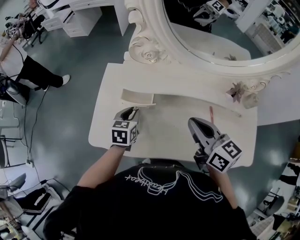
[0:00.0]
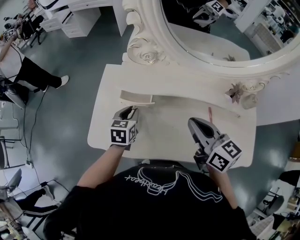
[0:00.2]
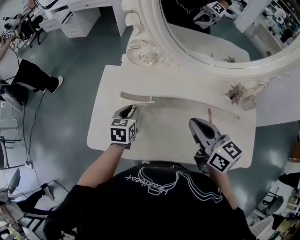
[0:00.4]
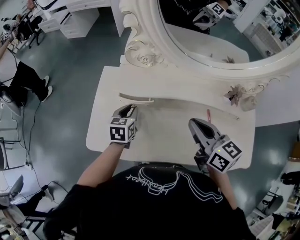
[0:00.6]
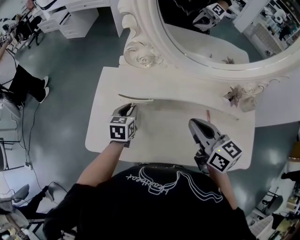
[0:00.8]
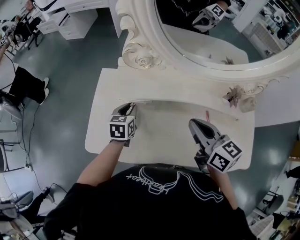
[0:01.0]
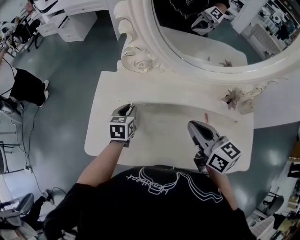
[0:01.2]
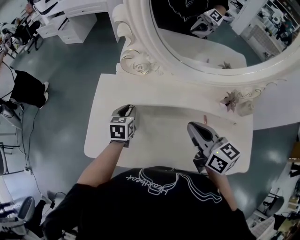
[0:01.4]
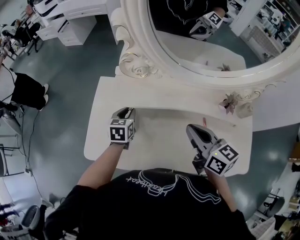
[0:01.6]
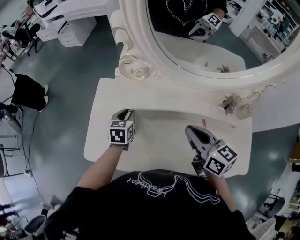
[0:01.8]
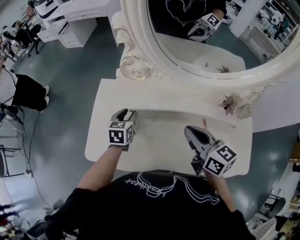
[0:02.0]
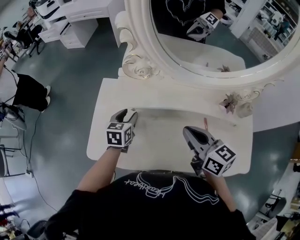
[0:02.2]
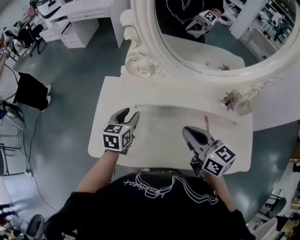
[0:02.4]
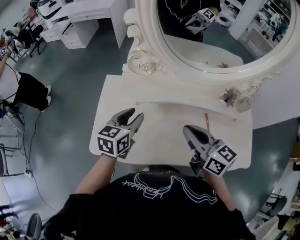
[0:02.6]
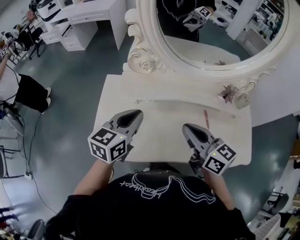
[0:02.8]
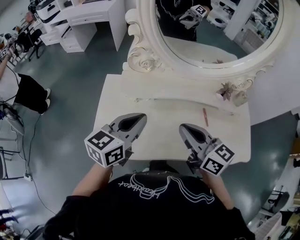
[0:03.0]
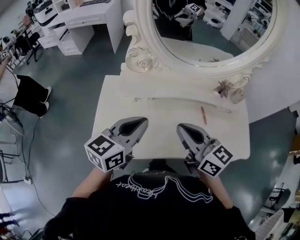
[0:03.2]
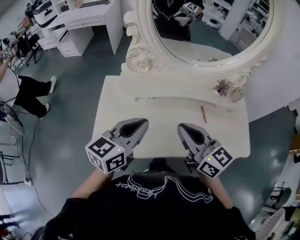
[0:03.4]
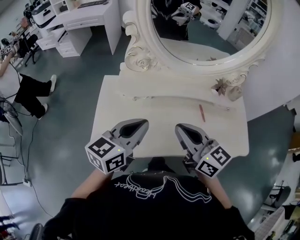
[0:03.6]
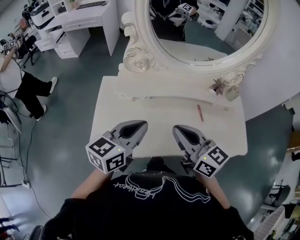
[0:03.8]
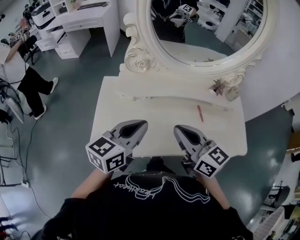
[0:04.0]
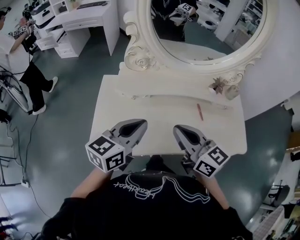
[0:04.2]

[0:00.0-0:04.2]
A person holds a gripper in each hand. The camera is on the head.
0.0 to 1.4 s: The left gripper goes some 5 cm forward.
1.4 to 2.8 s: The left gripper travels upward and backward by about 20 cm, swivels about 30 degrees, and opens, then closes once more. The right gripper shifts approximately 5 cm backward.
2.8 to 4.2 s: The two grippers go roughly 5 cm backward.

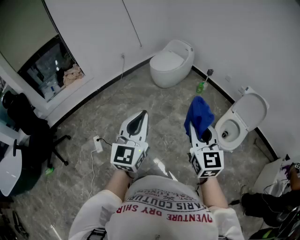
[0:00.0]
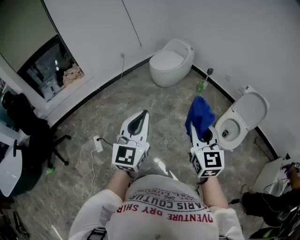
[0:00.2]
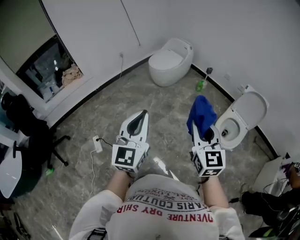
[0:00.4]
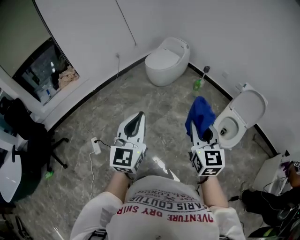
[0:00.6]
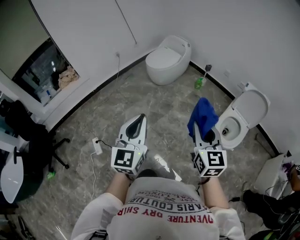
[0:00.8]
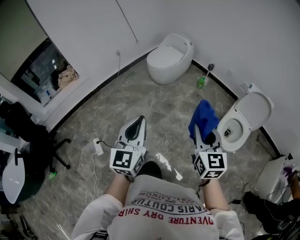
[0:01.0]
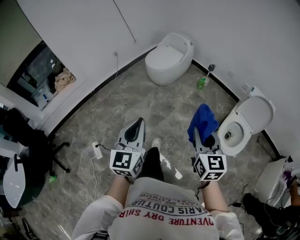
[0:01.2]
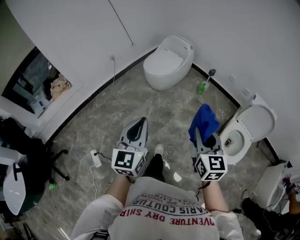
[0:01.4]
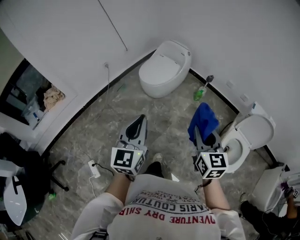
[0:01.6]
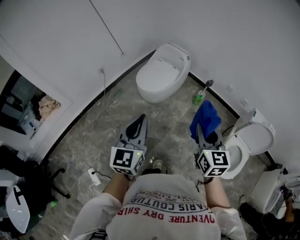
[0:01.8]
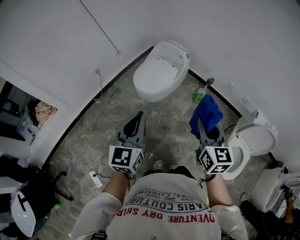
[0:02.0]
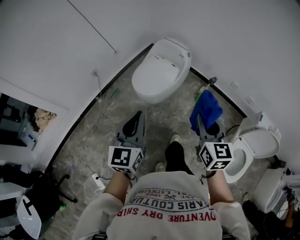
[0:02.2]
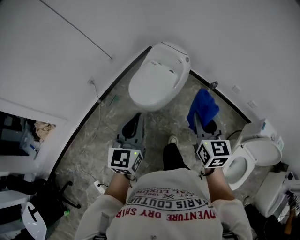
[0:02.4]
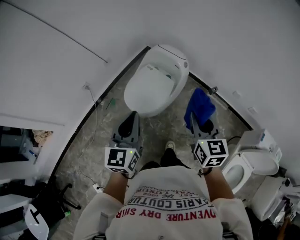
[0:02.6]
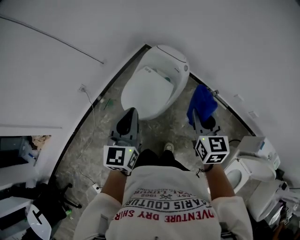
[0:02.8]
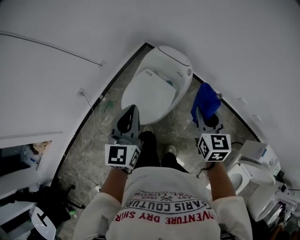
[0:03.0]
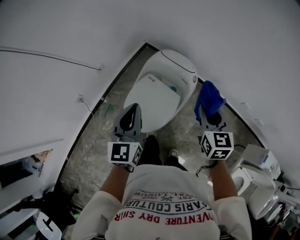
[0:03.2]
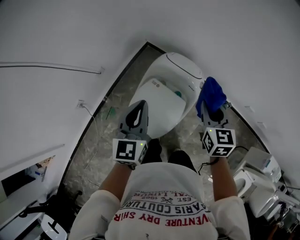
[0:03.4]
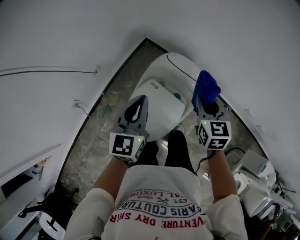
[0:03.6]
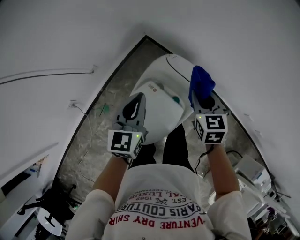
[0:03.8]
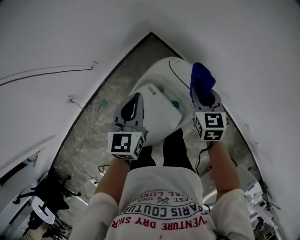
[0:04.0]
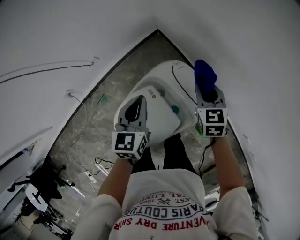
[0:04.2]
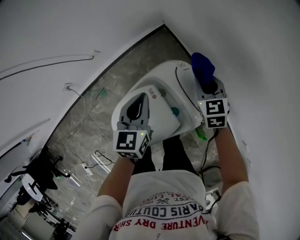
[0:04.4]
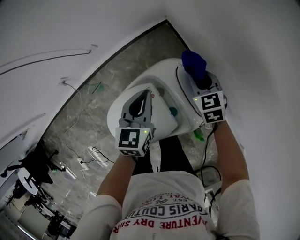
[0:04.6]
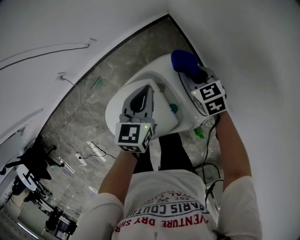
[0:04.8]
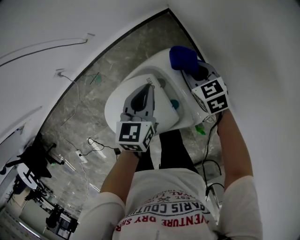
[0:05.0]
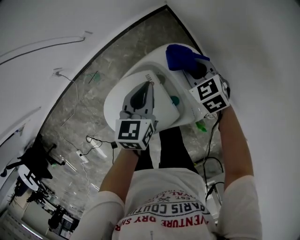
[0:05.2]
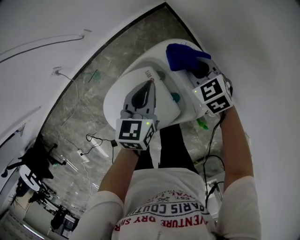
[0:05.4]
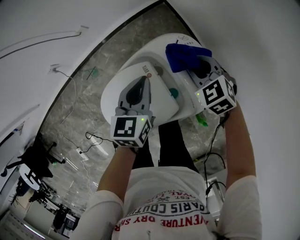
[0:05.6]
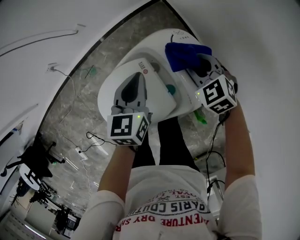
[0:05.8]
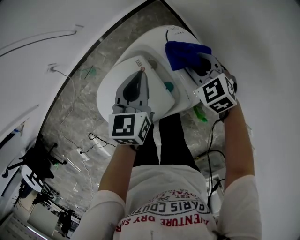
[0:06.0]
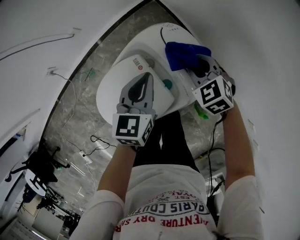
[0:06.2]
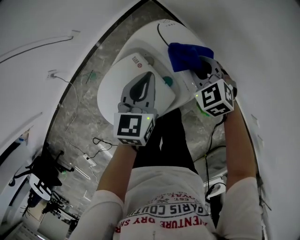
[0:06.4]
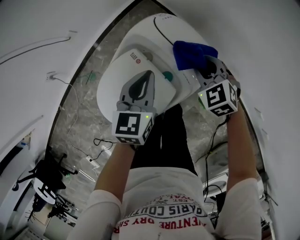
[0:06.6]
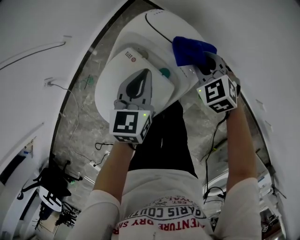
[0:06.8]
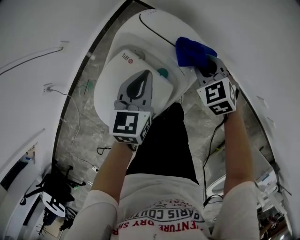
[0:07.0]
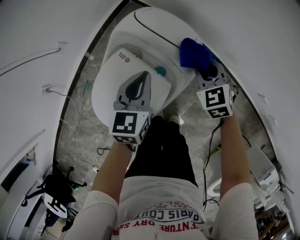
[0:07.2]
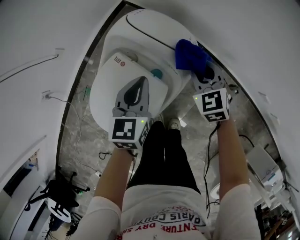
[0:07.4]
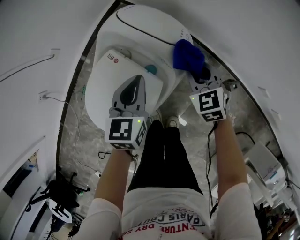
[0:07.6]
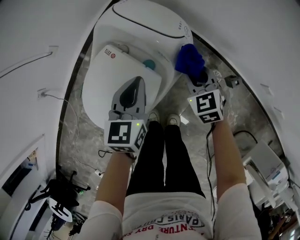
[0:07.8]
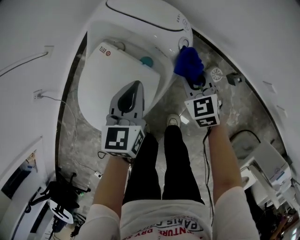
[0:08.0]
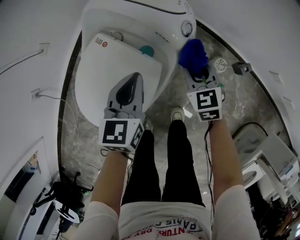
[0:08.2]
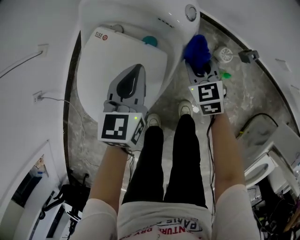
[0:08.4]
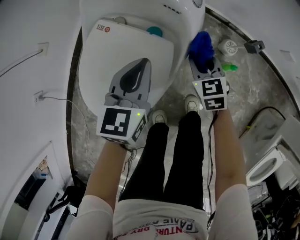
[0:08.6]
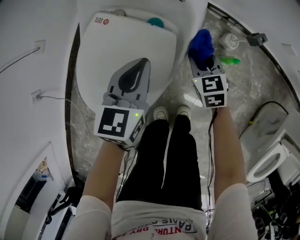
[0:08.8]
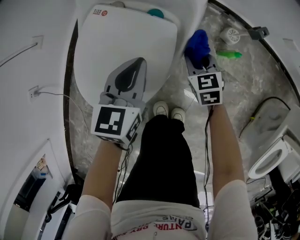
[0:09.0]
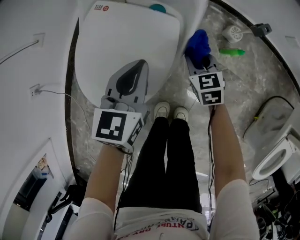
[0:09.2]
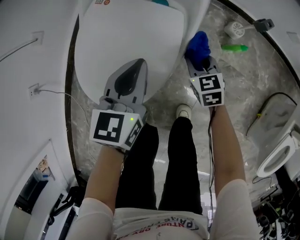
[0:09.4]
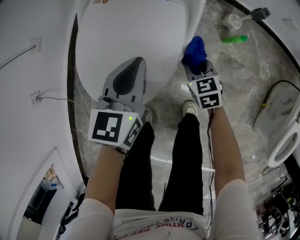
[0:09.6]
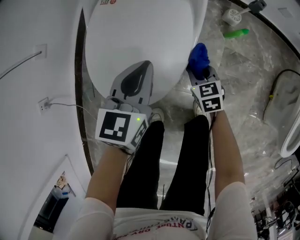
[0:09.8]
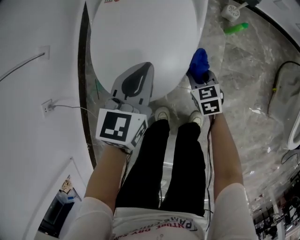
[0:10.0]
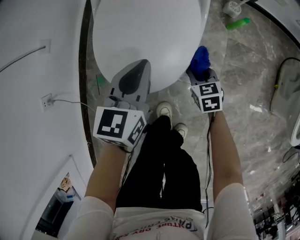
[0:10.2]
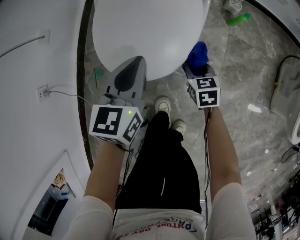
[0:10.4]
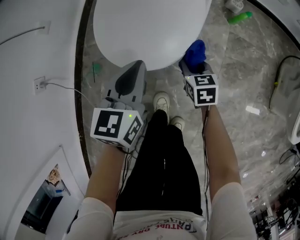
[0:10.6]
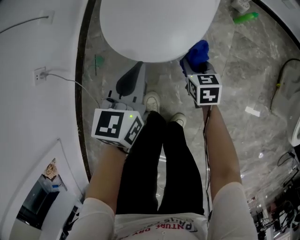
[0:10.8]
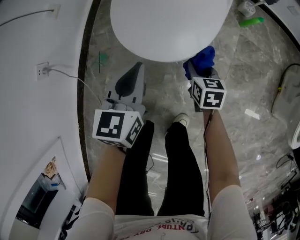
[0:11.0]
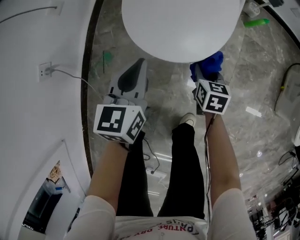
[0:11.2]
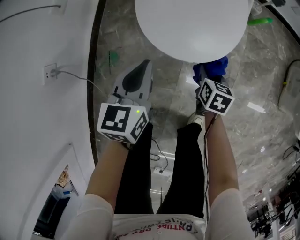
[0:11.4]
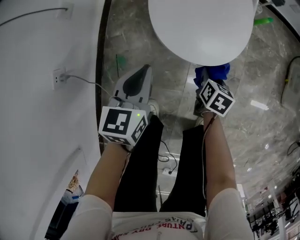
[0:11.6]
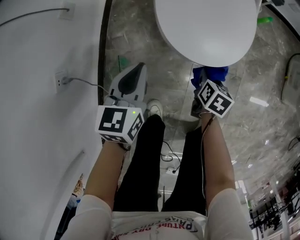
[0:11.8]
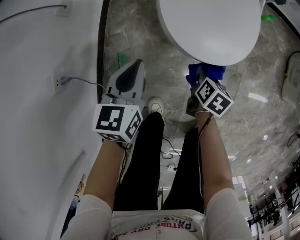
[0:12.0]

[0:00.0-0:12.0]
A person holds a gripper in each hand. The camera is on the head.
0.0 to 1.6 s: The two grippers go approximately 35 cm forward.
1.6 to 3.0 s: The pair of grippers is taken forward, some 70 cm.
3.0 to 4.4 s: Both grippers are carried forward, some 50 cm. The two grippers go roughly 25 cm downward. The right gripper rotates about 40 degrees. Meanwhile the left gripper swivels approximately 30 degrees.
4.4 to 6.0 s: The grippers both shift downward and backward by roughly 10 cm. The right gripper changes its angle by some 30 degrees.
6.0 to 7.6 s: The left gripper changes place by about 15 cm, and changes its angle by approximately 20 degrees, while the right gripper shifts by roughly 20 cm, and turns by about 40 degrees.
7.6 to 9.0 s: The right gripper heads downward and backward, covering about 25 cm, and swivels some 20 degrees; the left gripper moves backward and downward, approximately 20 cm.
9.0 to 10.4 s: Both grippers travel together backward and to the left, roughly 25 cm. The right gripper changes its angle by roughly 20 degrees.
10.4 to 12.0 s: The left gripper travels to the left by roughly 30 cm. Meanwhile the right gripper heads to the left and backward, covering some 20 cm, and rotates around the line of its fingers by roughly 40 degrees, clockwise from behind.

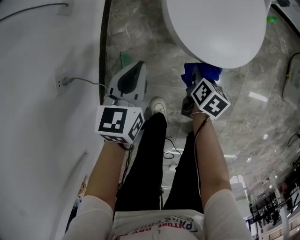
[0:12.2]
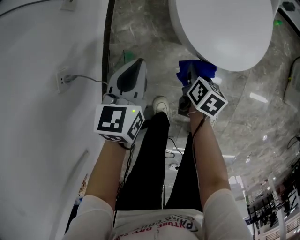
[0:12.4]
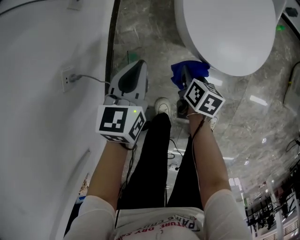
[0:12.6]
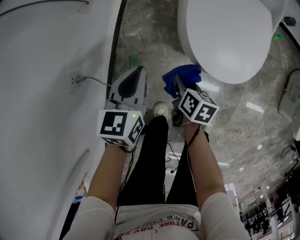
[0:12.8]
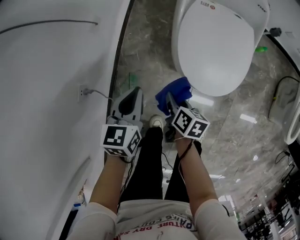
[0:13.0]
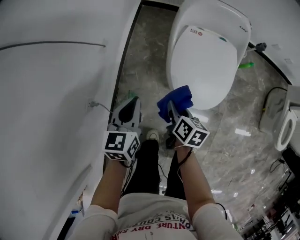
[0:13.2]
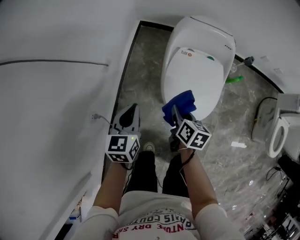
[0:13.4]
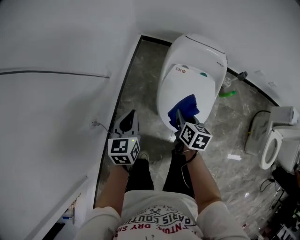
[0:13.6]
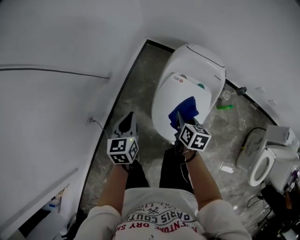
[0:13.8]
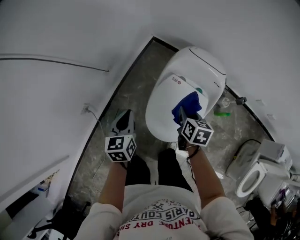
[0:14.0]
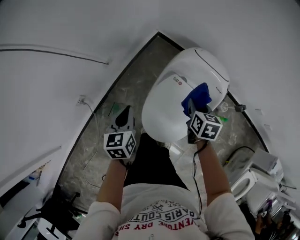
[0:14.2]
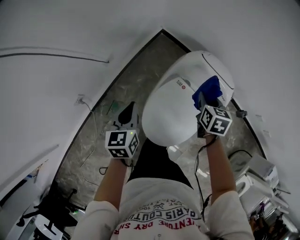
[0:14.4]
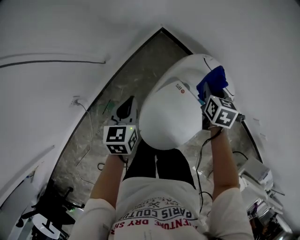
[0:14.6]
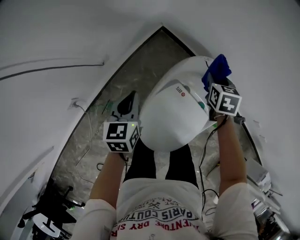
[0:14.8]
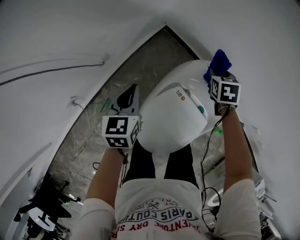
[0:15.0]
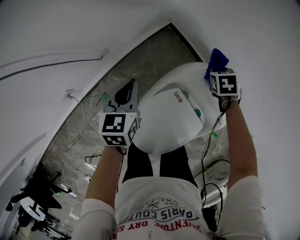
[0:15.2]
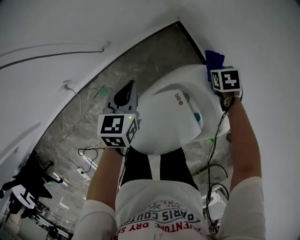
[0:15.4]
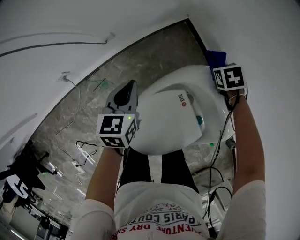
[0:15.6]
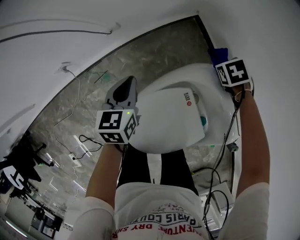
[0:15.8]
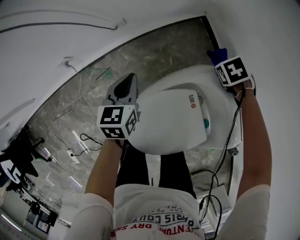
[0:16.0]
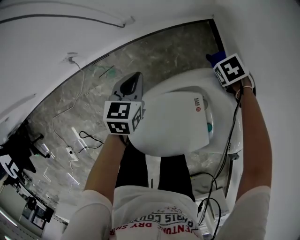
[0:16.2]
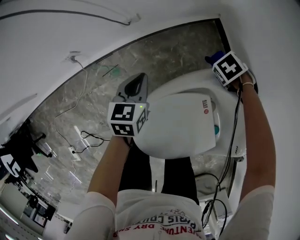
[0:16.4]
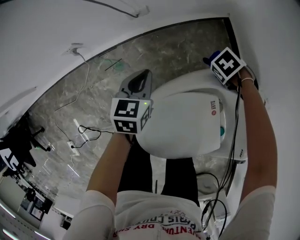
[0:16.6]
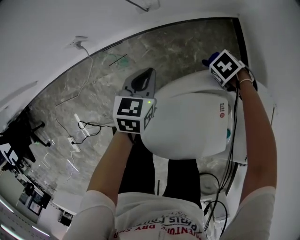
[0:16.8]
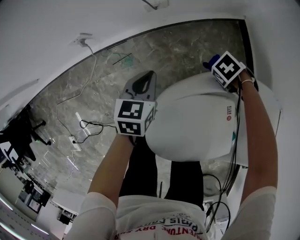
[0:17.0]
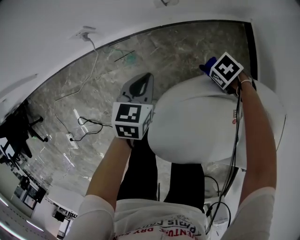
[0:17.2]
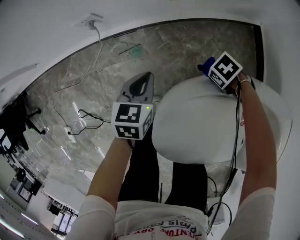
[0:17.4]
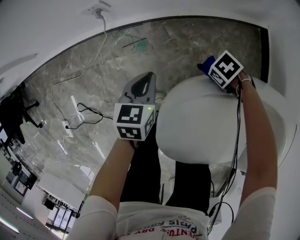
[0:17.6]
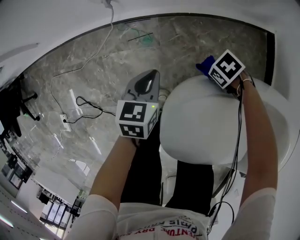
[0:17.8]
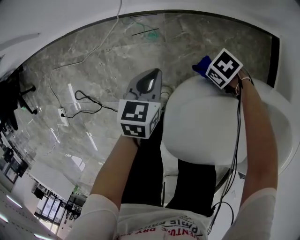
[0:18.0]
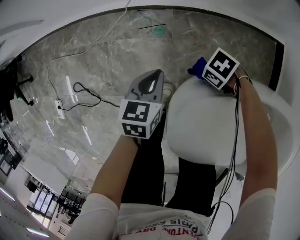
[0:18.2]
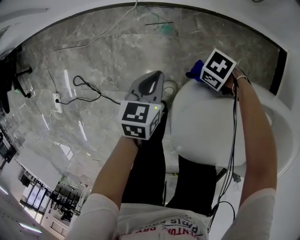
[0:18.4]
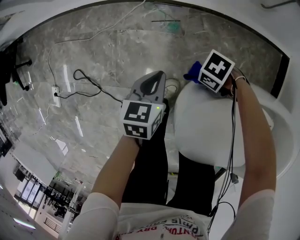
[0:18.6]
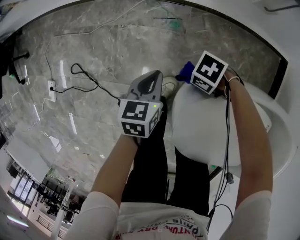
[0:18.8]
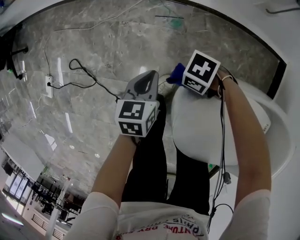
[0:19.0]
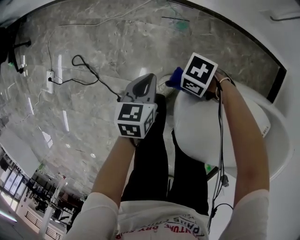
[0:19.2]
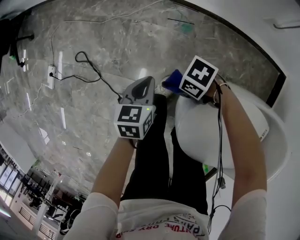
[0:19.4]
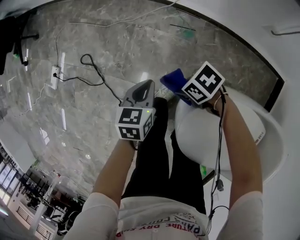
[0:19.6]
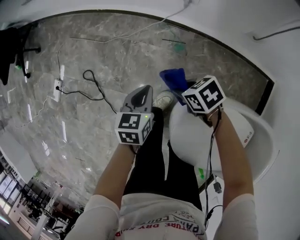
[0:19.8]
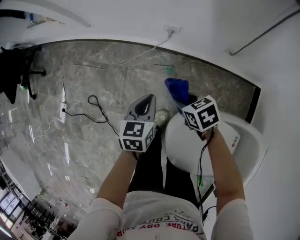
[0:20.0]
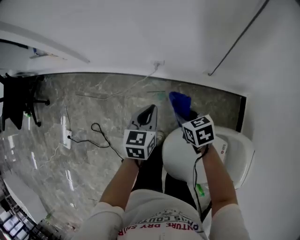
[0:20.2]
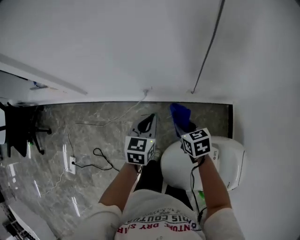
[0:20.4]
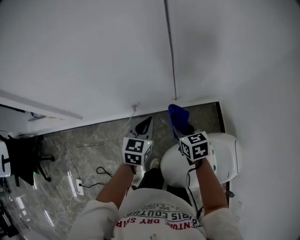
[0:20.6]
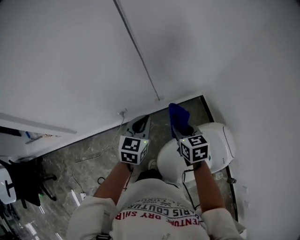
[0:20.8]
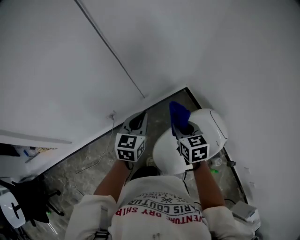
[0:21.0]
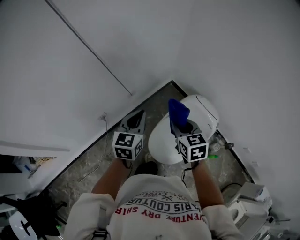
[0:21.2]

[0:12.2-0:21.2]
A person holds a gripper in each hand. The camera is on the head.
12.2 to 13.8 s: The two grippers go approximately 35 cm upward. The right gripper rotates some 30 degrees; the left gripper changes its angle by some 30 degrees.
13.8 to 15.2 s: The right gripper travels forward by some 40 cm, and twists about 60 degrees counterclockwise, seen from behind; the left gripper is displaced forward by some 25 cm.
15.2 to 16.6 s: Both grippers move downward, about 20 cm. The right gripper twists roughly 50 degrees counterclockwise, seen from behind.
16.6 to 18.2 s: The left gripper ends up about 25 cm from where it was, and turns by about 20 degrees. Meanwhile the right gripper changes place by roughly 35 cm, and turns by approximately 40 degrees.
18.2 to 19.8 s: The right gripper changes place by approximately 25 cm, and swivels approximately 20 degrees; the left gripper shifts by roughly 20 cm.
19.8 to 21.2 s: Both grippers move upward, about 50 cm. The right gripper turns by approximately 100 degrees. The left gripper changes its angle by some 70 degrees.
